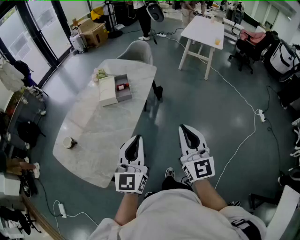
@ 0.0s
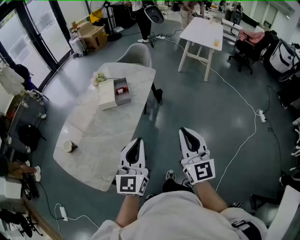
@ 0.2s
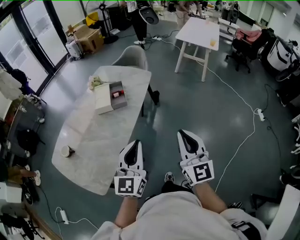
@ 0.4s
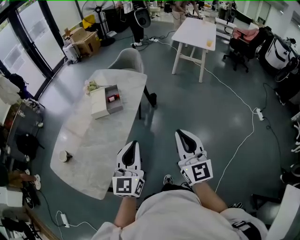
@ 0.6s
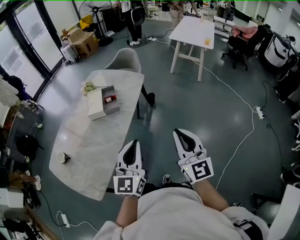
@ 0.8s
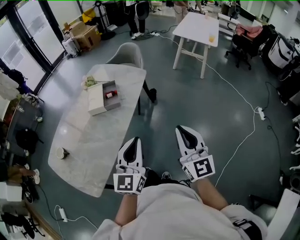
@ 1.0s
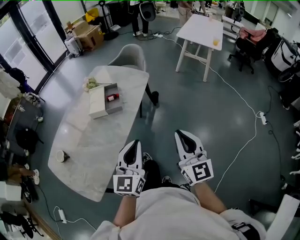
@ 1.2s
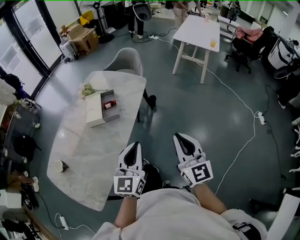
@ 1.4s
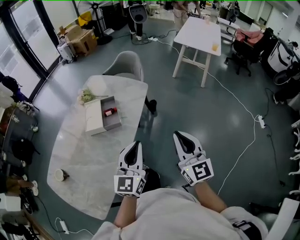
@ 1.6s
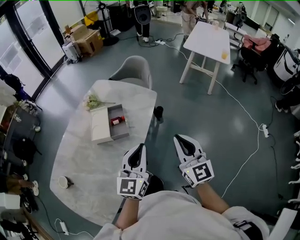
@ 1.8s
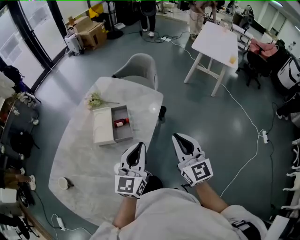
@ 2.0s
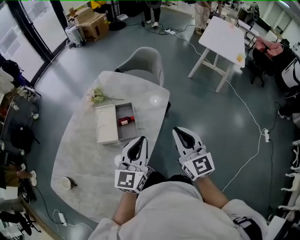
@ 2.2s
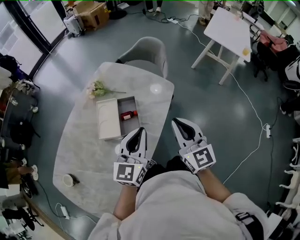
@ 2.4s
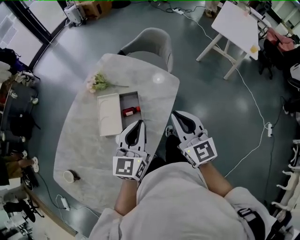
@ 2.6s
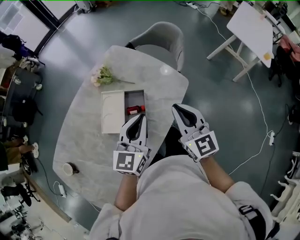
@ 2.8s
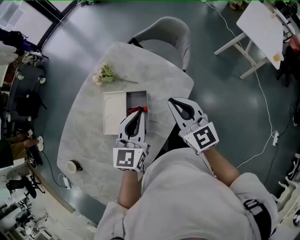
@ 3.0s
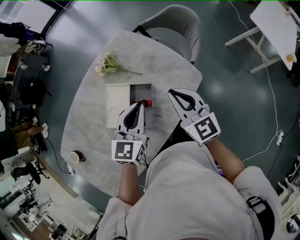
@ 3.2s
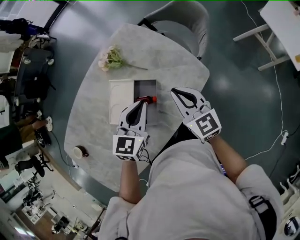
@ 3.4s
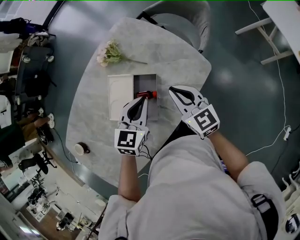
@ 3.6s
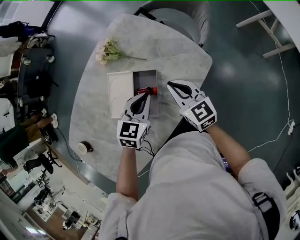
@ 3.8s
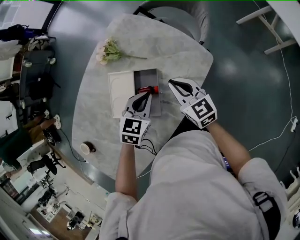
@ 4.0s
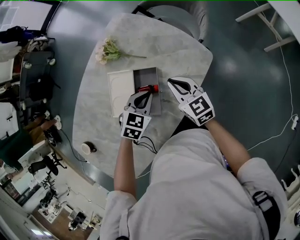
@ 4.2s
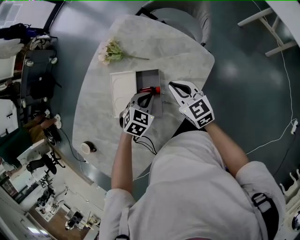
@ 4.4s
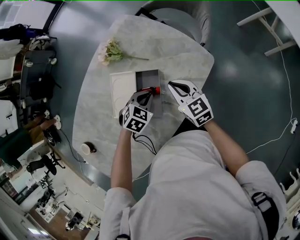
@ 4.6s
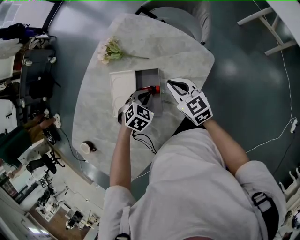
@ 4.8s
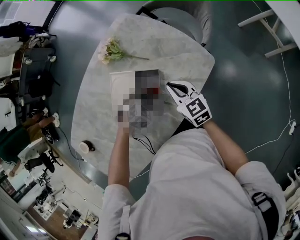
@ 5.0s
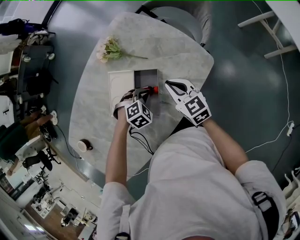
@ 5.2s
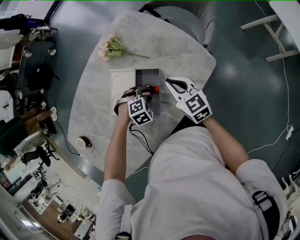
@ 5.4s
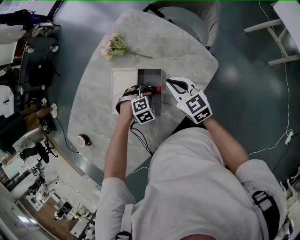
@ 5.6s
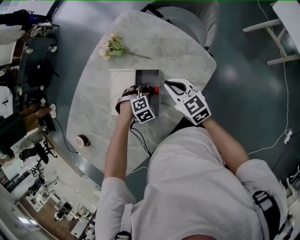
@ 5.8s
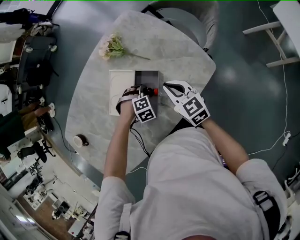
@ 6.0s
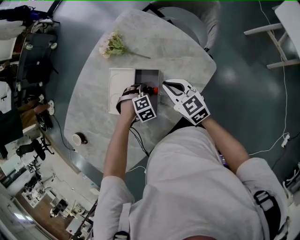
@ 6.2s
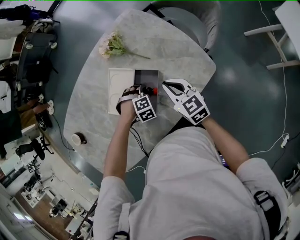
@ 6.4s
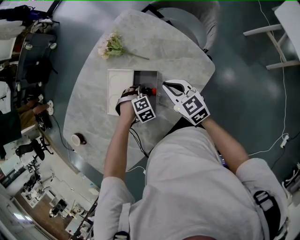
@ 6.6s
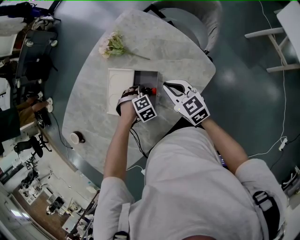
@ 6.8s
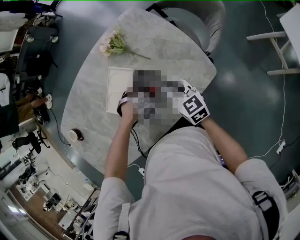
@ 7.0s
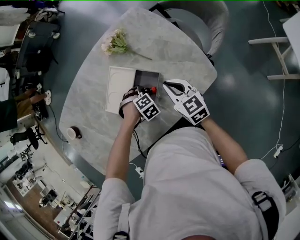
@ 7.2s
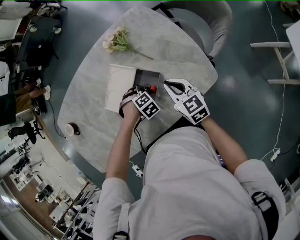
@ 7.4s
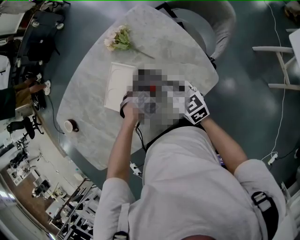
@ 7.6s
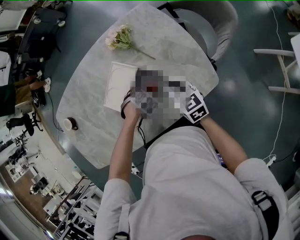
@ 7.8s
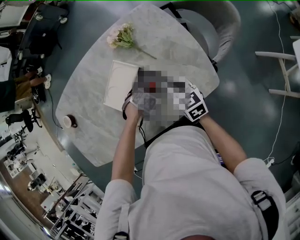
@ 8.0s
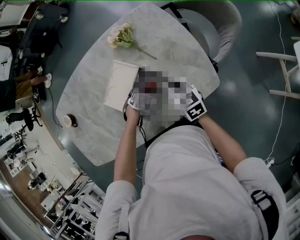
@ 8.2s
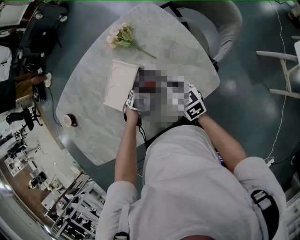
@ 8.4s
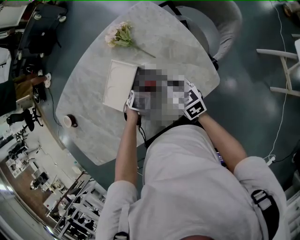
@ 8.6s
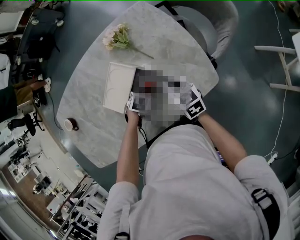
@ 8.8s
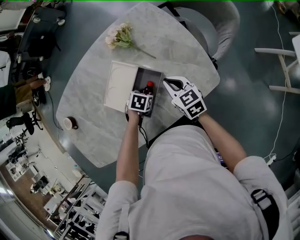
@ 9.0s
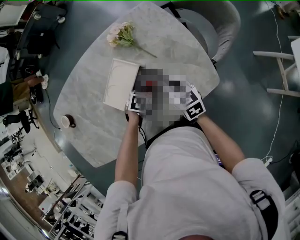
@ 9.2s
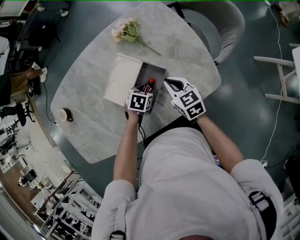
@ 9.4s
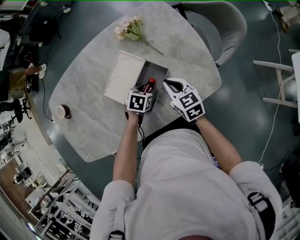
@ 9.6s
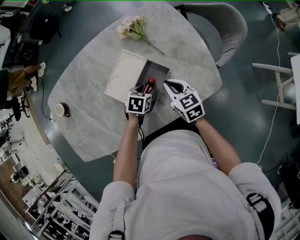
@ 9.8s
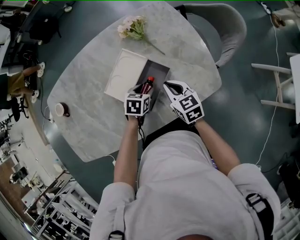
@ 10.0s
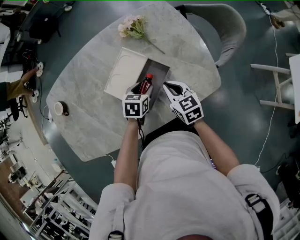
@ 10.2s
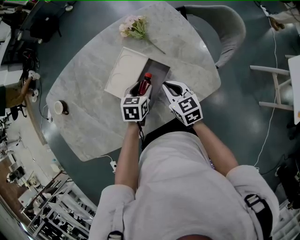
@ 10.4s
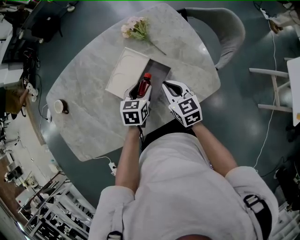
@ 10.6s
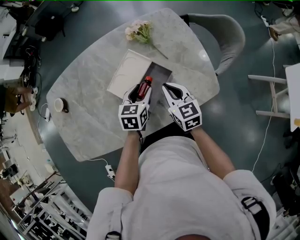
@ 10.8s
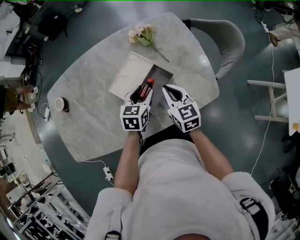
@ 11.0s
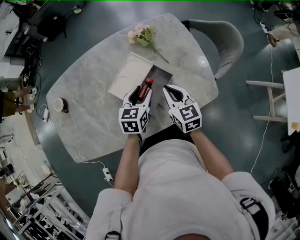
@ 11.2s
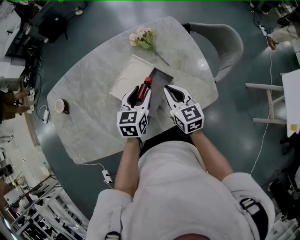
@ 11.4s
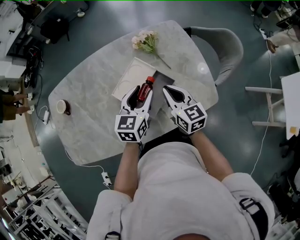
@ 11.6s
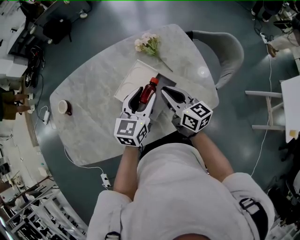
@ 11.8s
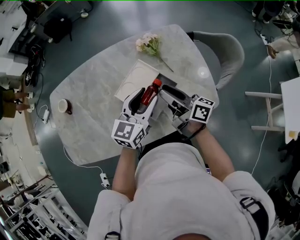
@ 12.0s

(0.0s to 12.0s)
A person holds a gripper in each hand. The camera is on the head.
0.0s - 1.6s: Both grippers travel together forward, approximately 20 cm.
1.6s - 3.0s: The two grippers go approximately 40 cm forward. The right gripper swivels some 30 degrees.
3.0s - 4.4s: Both grippers travel together downward, approximately 20 cm. The left gripper tilts its fingers some 40 degrees downward.
4.4s - 6.0s: The left gripper is displaced downward by roughly 10 cm, changes its angle by some 40 degrees, and opens.
6.0s - 7.6s: The left gripper rotates approximately 40 degrees.
7.6s - 9.0s: The left gripper changes its angle by some 40 degrees.
9.0s - 10.4s: The right gripper changes place by some 5 cm. Meanwhile the left gripper moves upward, approximately 10 cm, and turns by roughly 40 degrees.
10.4s - 12.0s: The left gripper shifts about 20 cm upward, and points its fingers approximately 40 degrees further upward. The right gripper goes roughly 15 cm upward, angles its fingers upward, by about 40 degrees, and opens up.

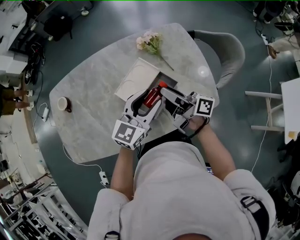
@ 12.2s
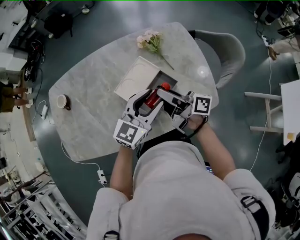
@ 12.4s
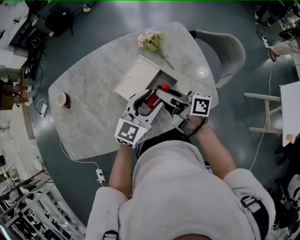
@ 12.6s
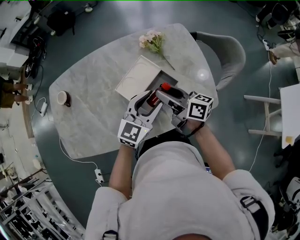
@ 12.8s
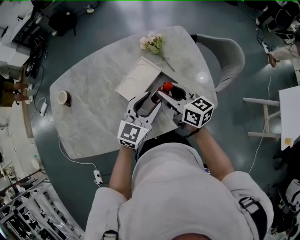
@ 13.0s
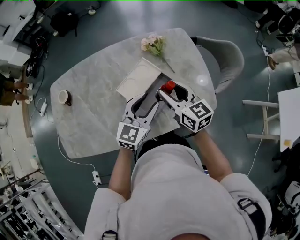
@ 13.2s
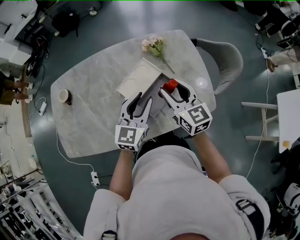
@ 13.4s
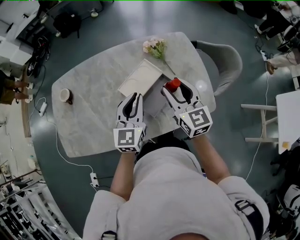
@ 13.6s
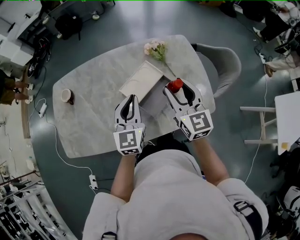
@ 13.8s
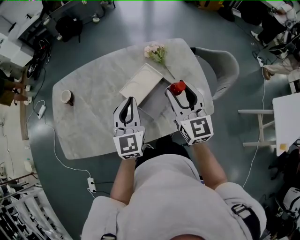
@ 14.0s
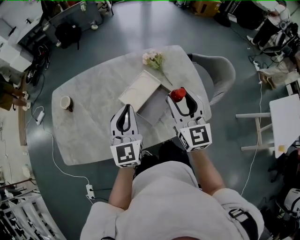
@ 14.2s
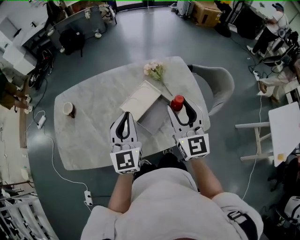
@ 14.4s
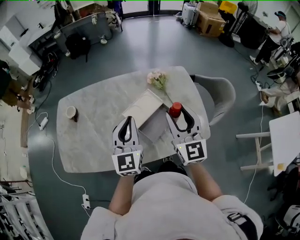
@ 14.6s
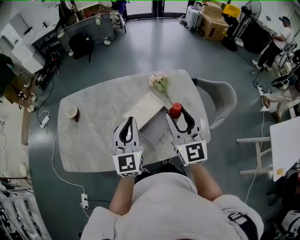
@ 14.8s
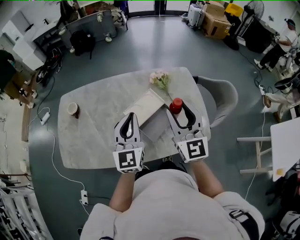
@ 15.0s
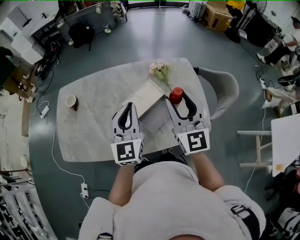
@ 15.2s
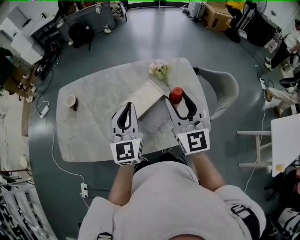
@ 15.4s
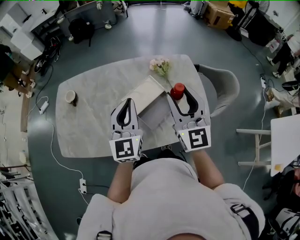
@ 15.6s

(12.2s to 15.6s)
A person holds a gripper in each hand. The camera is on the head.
12.2s - 13.8s: The left gripper moves to the left, some 10 cm, changes its angle by about 30 degrees, and closes its fingers, while the right gripper heads upward, covering approximately 5 cm, and rotates around the line of its fingers by roughly 70 degrees, counterclockwise from behind.
13.8s - 15.6s: Both grippers travel together upward, roughly 10 cm.

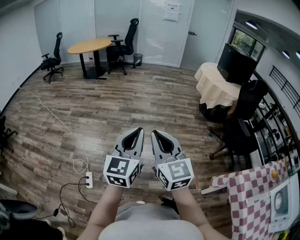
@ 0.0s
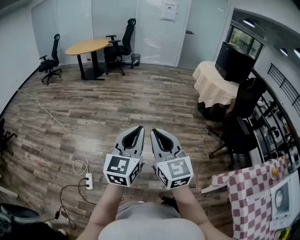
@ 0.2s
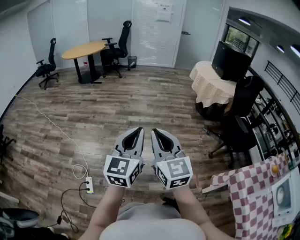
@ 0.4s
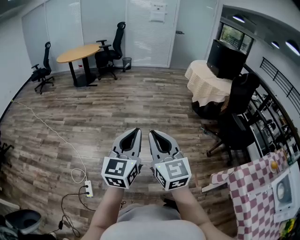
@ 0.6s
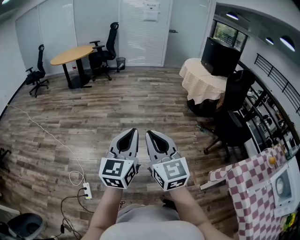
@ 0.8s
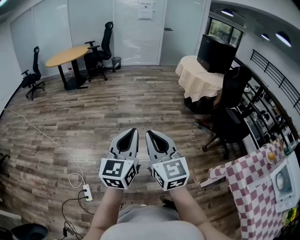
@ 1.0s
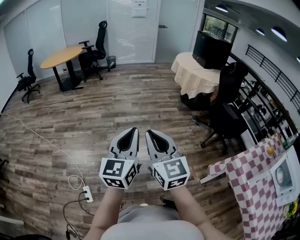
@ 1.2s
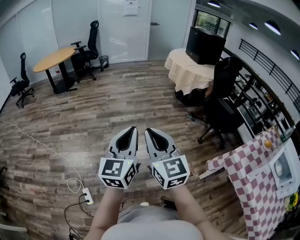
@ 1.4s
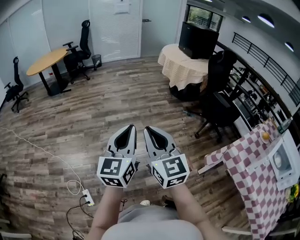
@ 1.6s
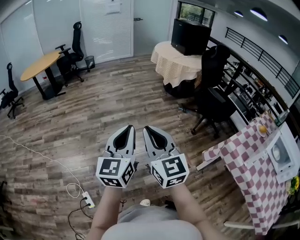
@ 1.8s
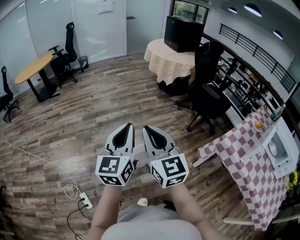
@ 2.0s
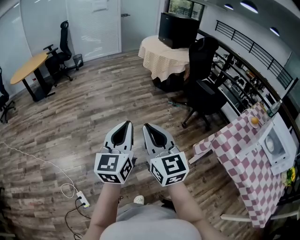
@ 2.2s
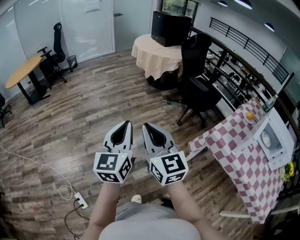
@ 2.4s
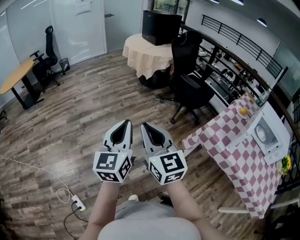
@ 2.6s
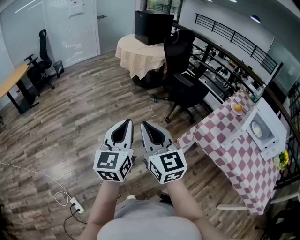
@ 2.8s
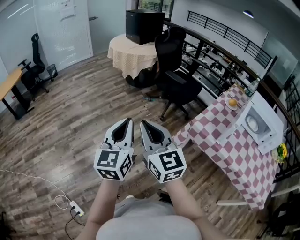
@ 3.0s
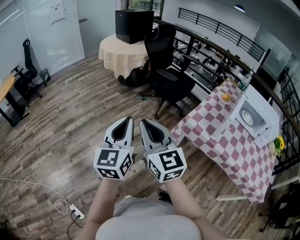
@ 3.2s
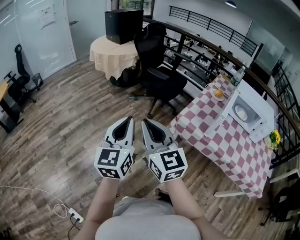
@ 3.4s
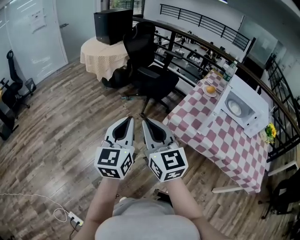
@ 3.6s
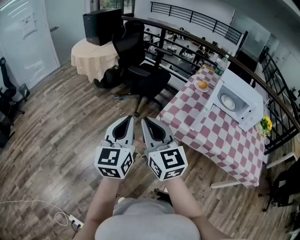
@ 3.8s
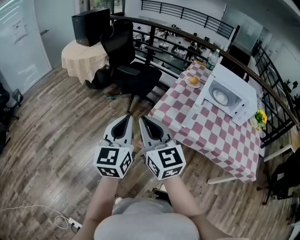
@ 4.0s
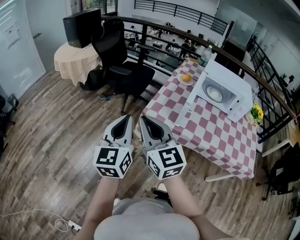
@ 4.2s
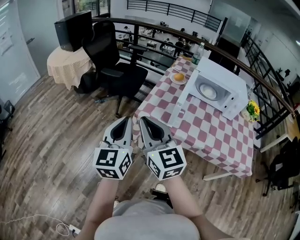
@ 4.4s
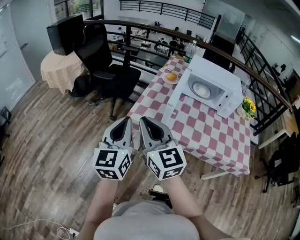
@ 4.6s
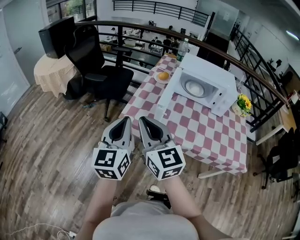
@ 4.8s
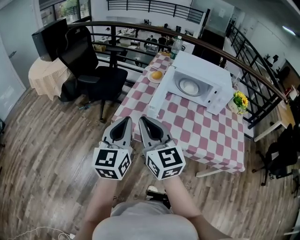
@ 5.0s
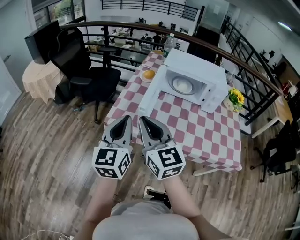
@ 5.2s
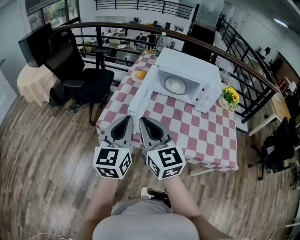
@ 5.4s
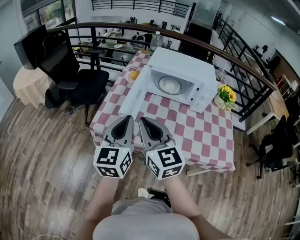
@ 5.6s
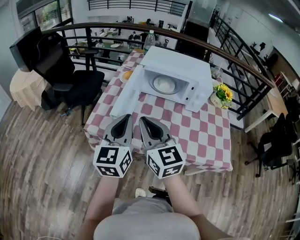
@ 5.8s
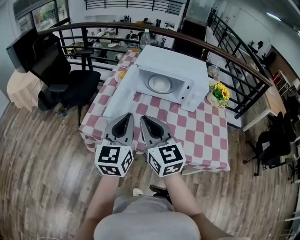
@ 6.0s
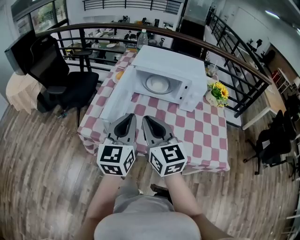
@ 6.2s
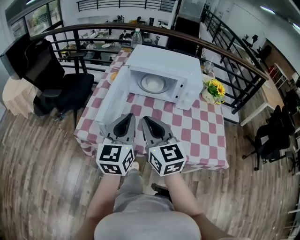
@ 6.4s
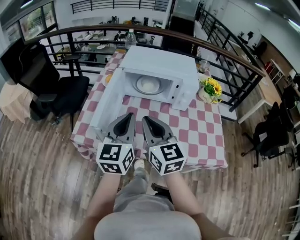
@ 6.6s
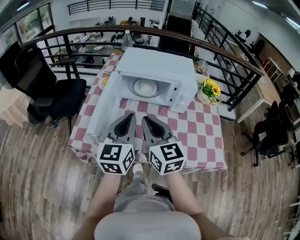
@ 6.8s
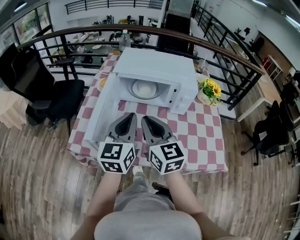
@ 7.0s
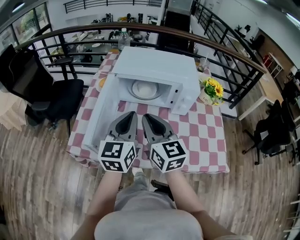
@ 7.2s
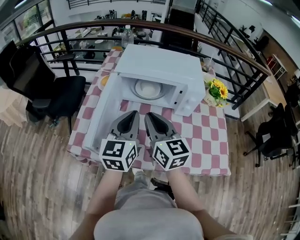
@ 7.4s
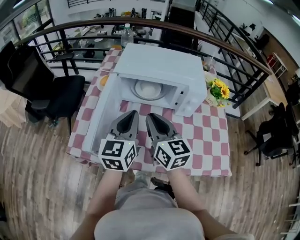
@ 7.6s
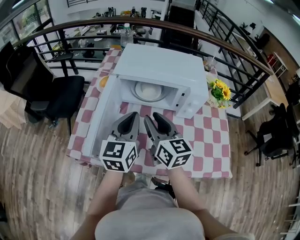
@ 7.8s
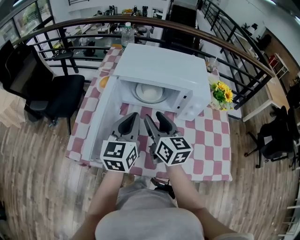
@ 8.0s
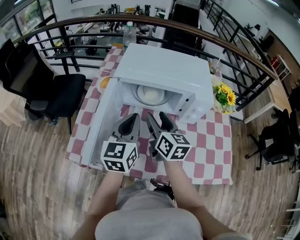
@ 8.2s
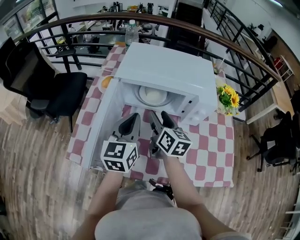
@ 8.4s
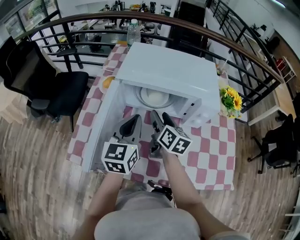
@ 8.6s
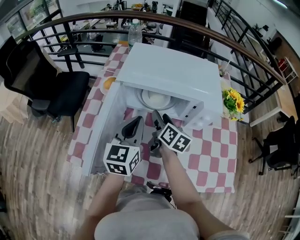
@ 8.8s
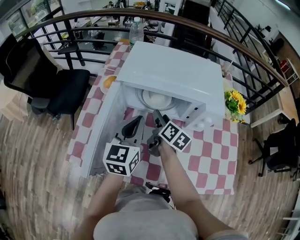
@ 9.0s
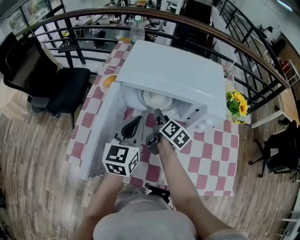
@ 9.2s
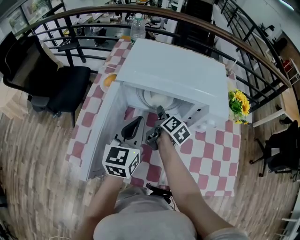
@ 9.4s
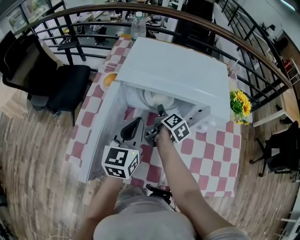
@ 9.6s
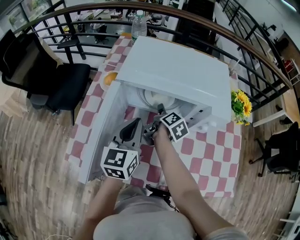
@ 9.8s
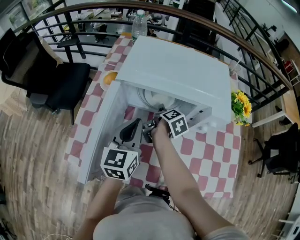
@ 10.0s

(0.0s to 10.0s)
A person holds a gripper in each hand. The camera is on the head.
0.0s - 1.4s: The left gripper changes place by approximately 5 cm.
1.4s - 2.8s: Both grippers move to the right, roughly 20 cm.
2.8s - 4.2s: The two grippers go roughly 30 cm to the right. The left gripper rotates approximately 20 degrees, while the right gripper swivels some 20 degrees.
4.2s - 5.8s: The two grippers go about 30 cm to the right.
5.8s - 7.2s: The grippers both shift forward and to the right by about 15 cm.
7.2s - 8.6s: The left gripper goes about 10 cm forward and downward. Meanwhile the right gripper goes approximately 20 cm forward and downward, turns by roughly 30 degrees, and opens its fingers.
8.6s - 10.0s: The right gripper is displaced downward and forward by some 15 cm, and turns by about 50 degrees.
